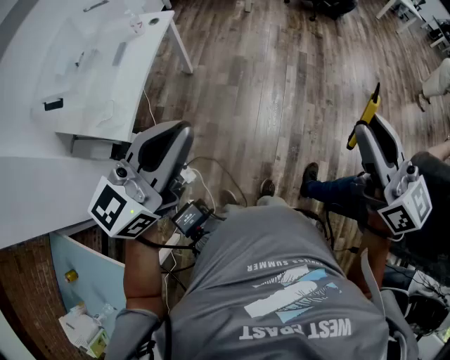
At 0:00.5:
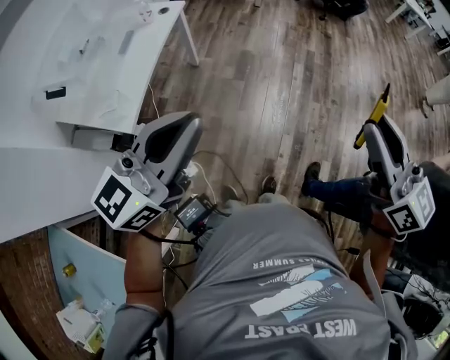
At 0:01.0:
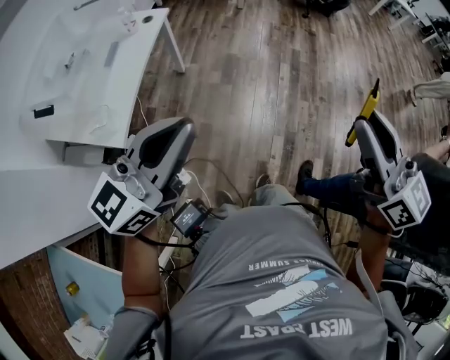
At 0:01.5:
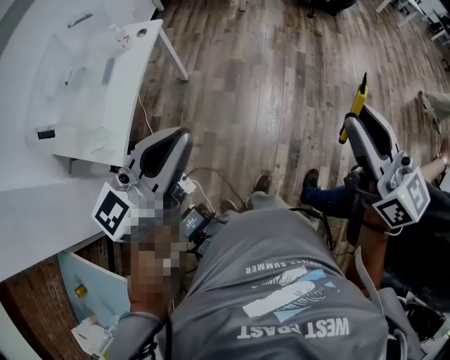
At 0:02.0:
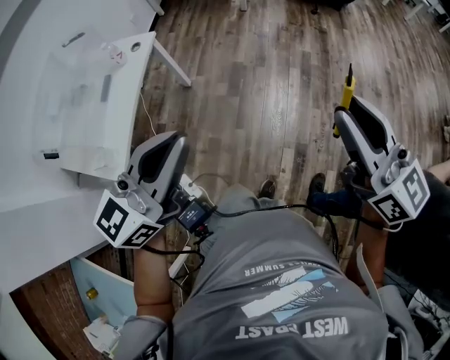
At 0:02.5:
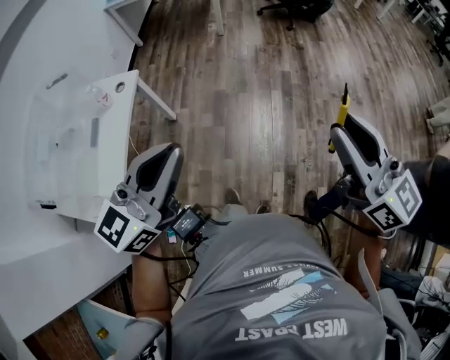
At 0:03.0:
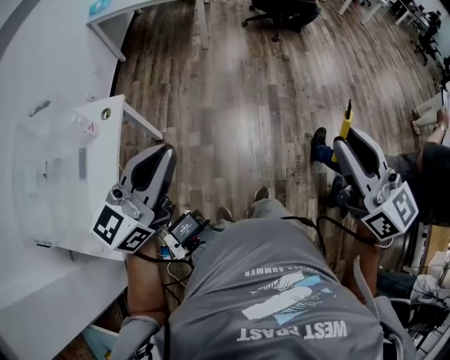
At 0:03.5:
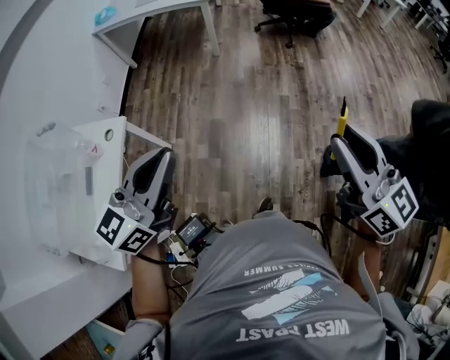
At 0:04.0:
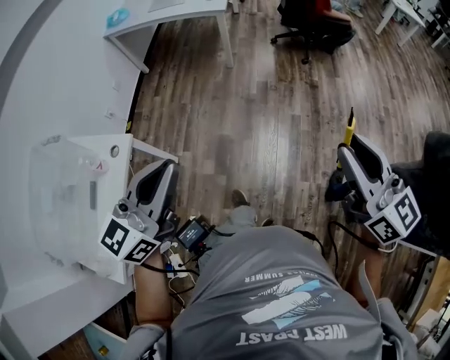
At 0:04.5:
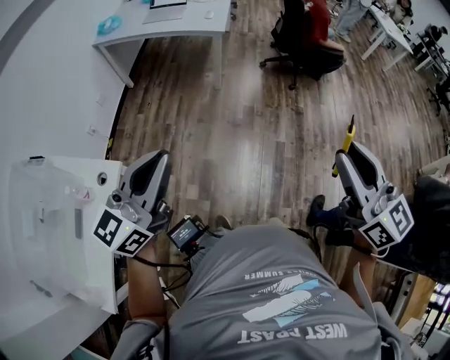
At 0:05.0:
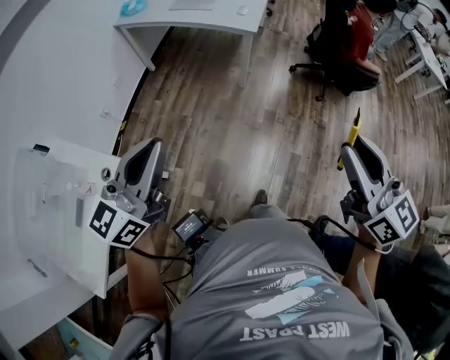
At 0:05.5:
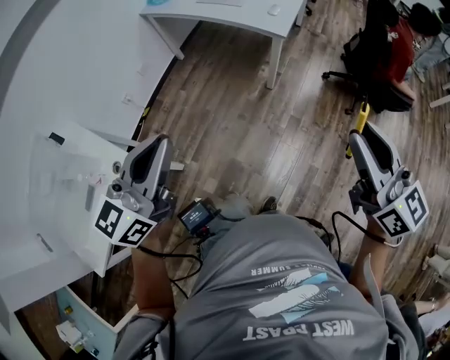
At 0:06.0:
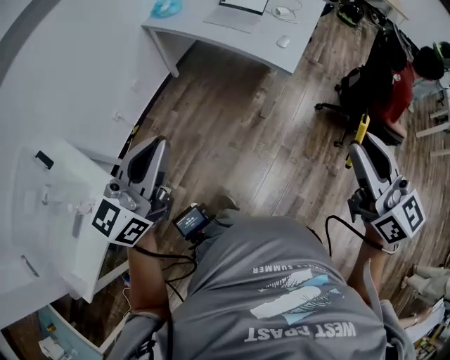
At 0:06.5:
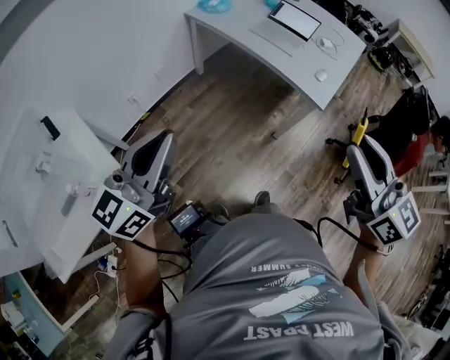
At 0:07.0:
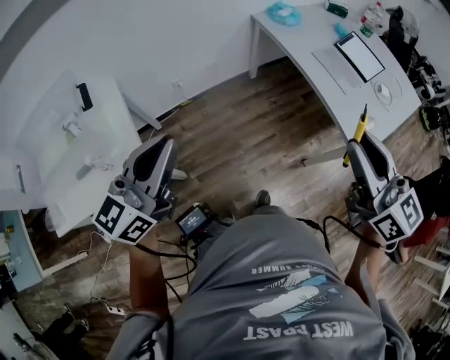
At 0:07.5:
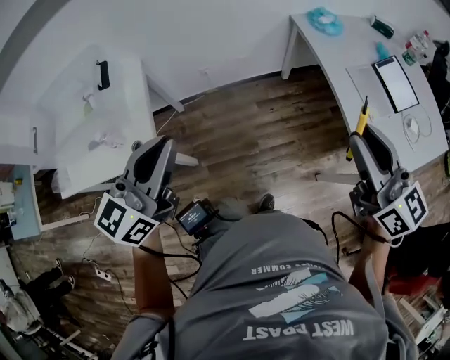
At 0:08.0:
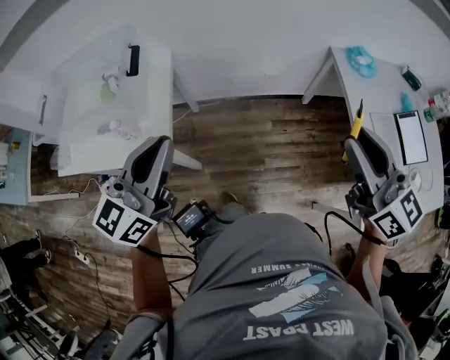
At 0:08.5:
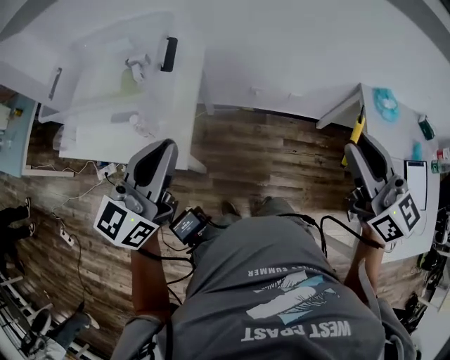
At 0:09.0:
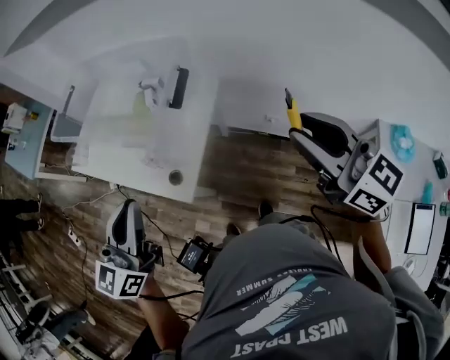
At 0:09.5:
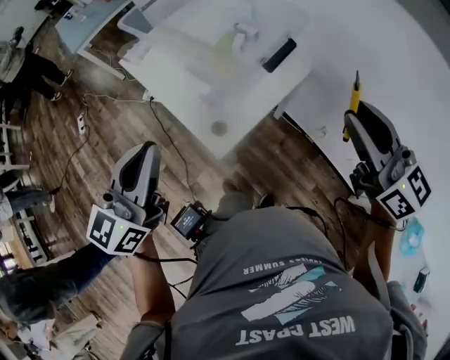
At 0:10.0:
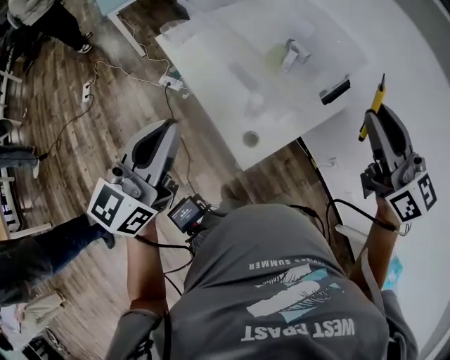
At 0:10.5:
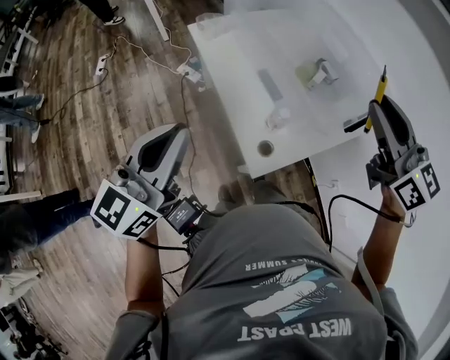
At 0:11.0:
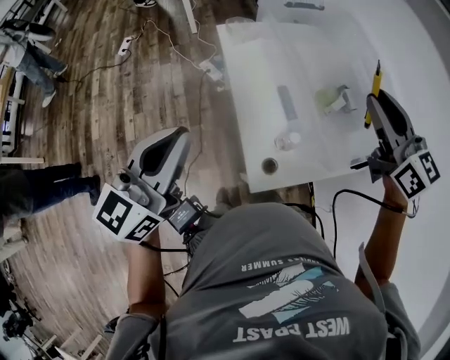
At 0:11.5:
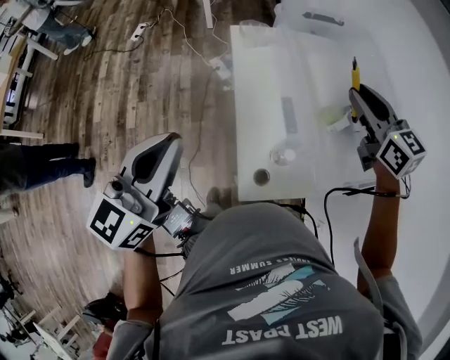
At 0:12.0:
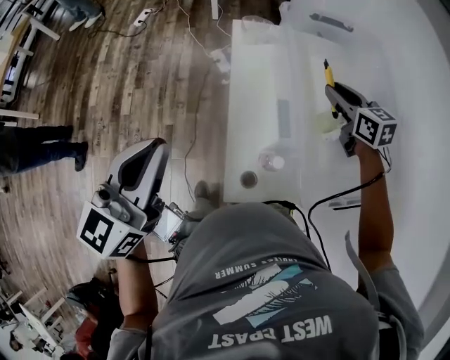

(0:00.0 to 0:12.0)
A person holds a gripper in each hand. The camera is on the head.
0:00.0 - 0:02.0: The grippers both shift forward by approximately 20 cm.
0:02.0 - 0:04.0: The grippers both shift forward by approximately 40 cm.
0:04.0 - 0:06.0: The two grippers travel together, forward, about 50 cm. The left gripper rotates approximately 20 degrees; the right gripper rotates some 20 degrees.
0:06.0 - 0:08.0: The right gripper moves about 50 cm, and changes its angle by some 60 degrees. Meanwhile the left gripper moves roughly 20 cm, and changes its angle by some 60 degrees.
0:08.0 - 0:10.0: The right gripper shifts by approximately 50 cm, and swivels roughly 60 degrees. The left gripper changes place by about 30 cm, and swivels about 60 degrees.
0:10.0 - 0:12.0: The right gripper changes place by roughly 40 cm, and tips its fingers downward by roughly 30 degrees, while the left gripper shifts by approximately 5 cm, and changes its angle by roughly 40 degrees.

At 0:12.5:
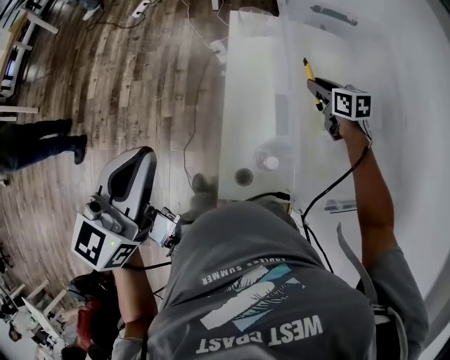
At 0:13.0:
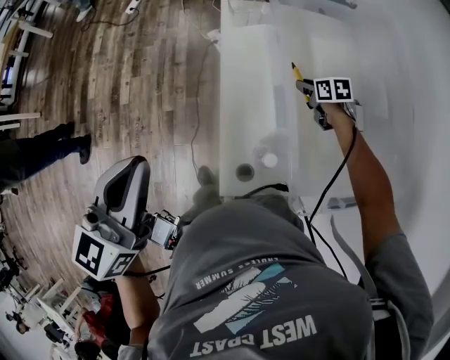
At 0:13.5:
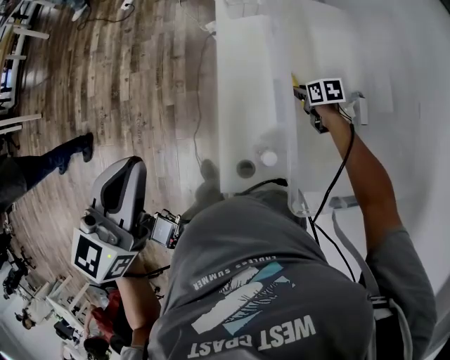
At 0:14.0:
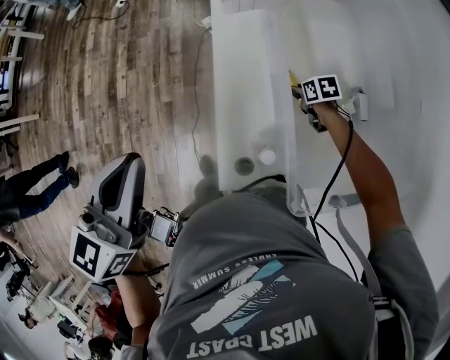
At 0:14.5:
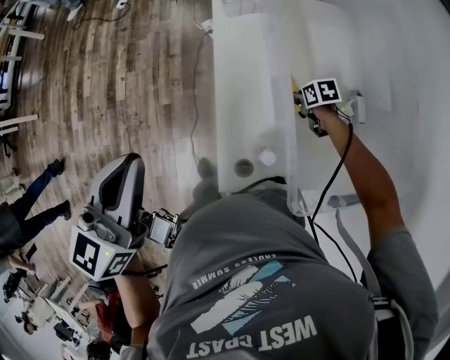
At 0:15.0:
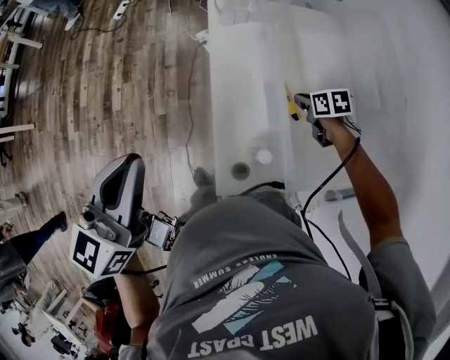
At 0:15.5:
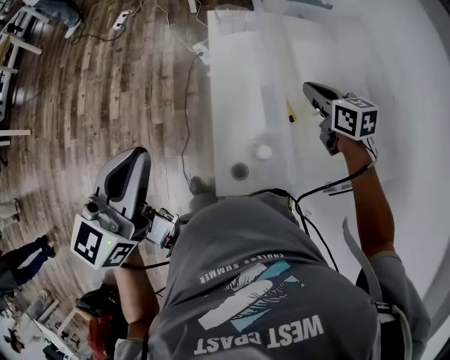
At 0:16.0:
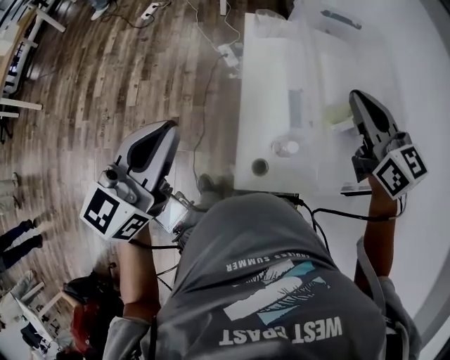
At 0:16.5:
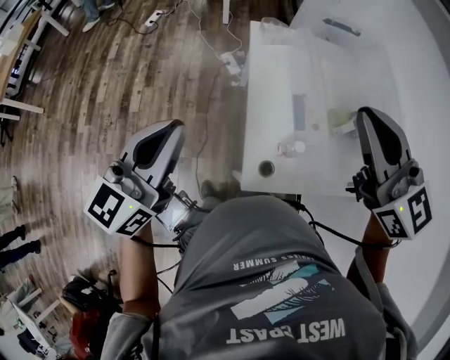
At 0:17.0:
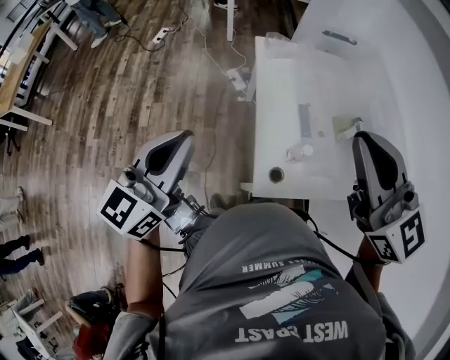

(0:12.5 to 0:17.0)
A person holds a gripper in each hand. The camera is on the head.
0:12.5 - 0:14.5: The left gripper changes place by about 5 cm, while the right gripper goes roughly 20 cm downward, and rotates about 30 degrees.
0:14.5 - 0:17.0: The right gripper shifts roughly 60 cm upward, to the left and backward, tips its fingers upward by approximately 60 degrees, and closes its fingers, while the left gripper goes about 15 cm to the left and backward.

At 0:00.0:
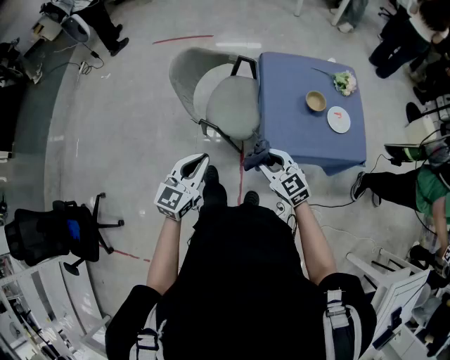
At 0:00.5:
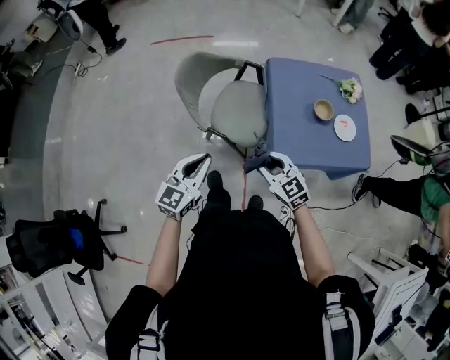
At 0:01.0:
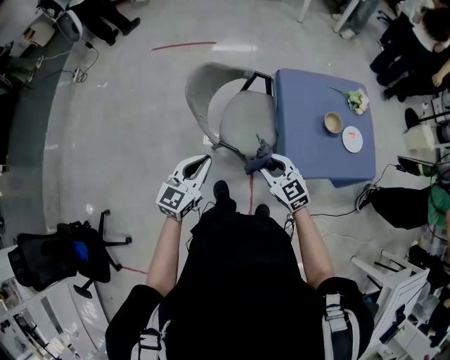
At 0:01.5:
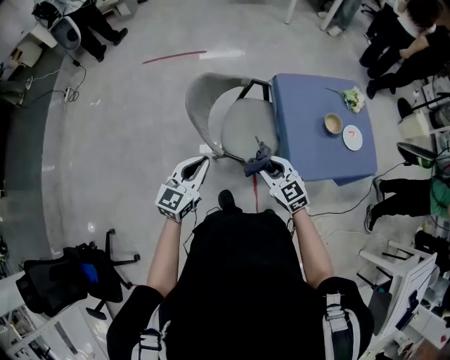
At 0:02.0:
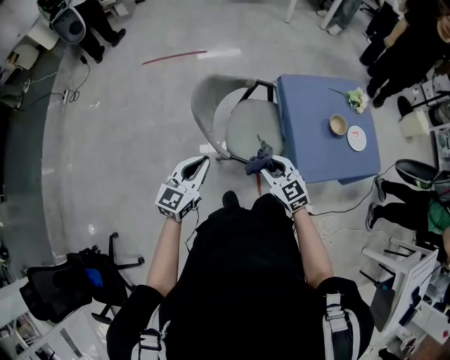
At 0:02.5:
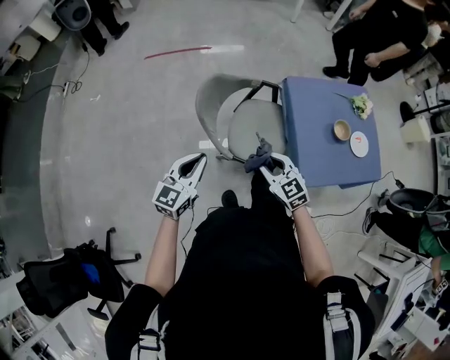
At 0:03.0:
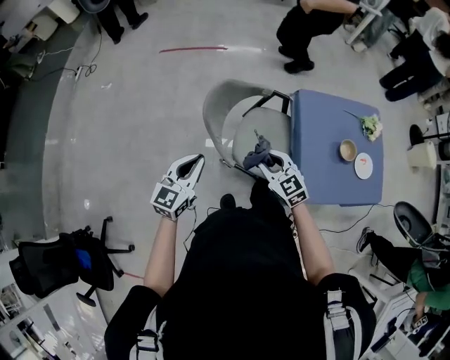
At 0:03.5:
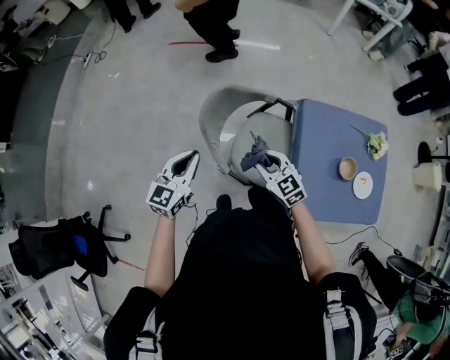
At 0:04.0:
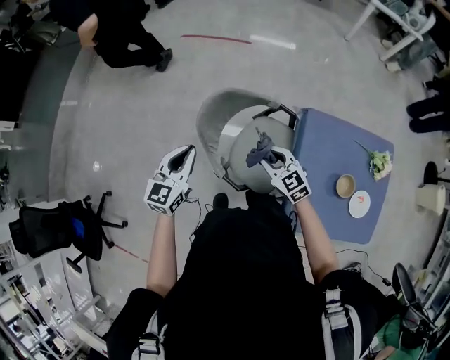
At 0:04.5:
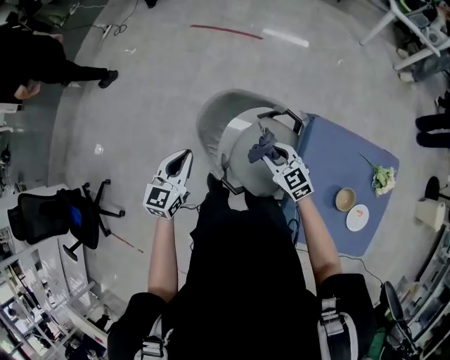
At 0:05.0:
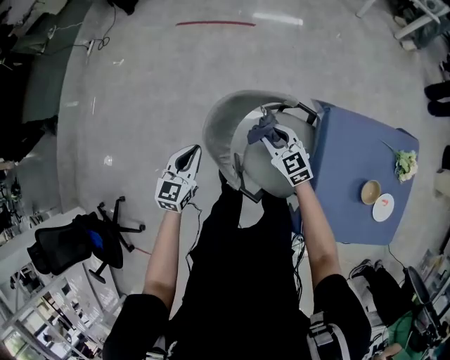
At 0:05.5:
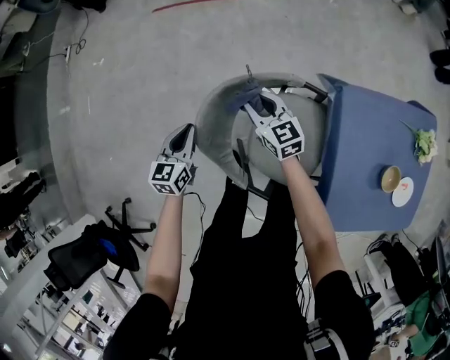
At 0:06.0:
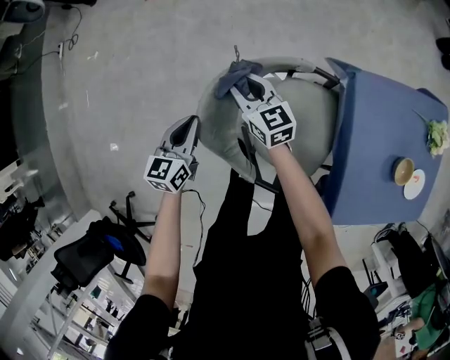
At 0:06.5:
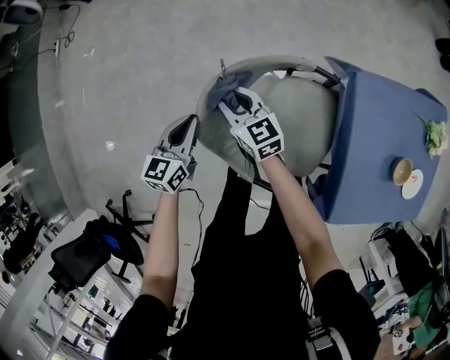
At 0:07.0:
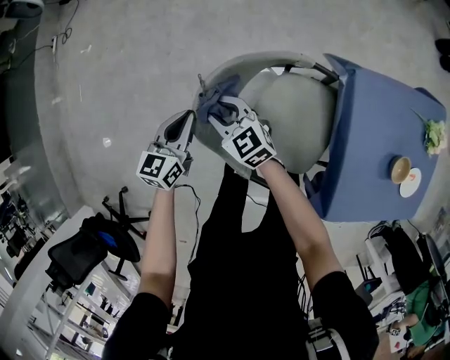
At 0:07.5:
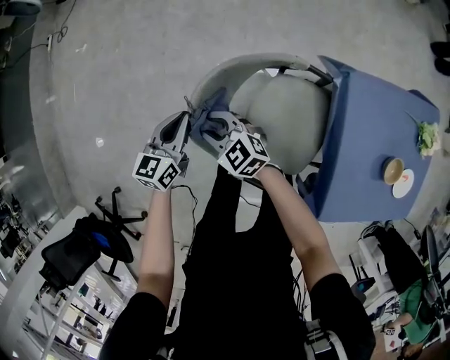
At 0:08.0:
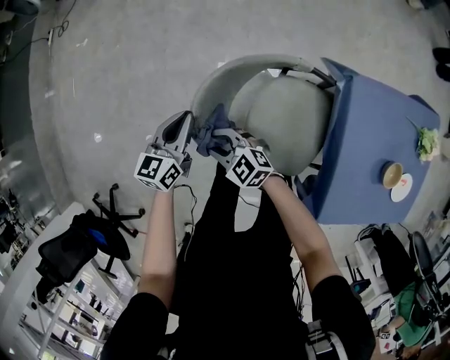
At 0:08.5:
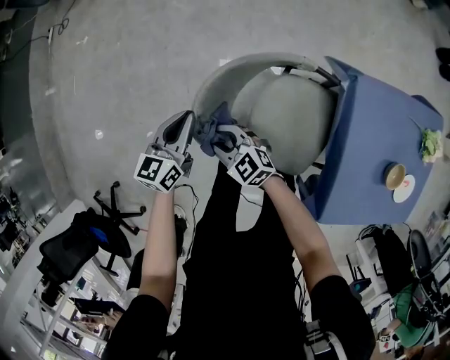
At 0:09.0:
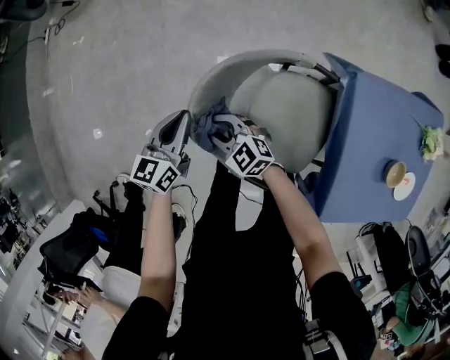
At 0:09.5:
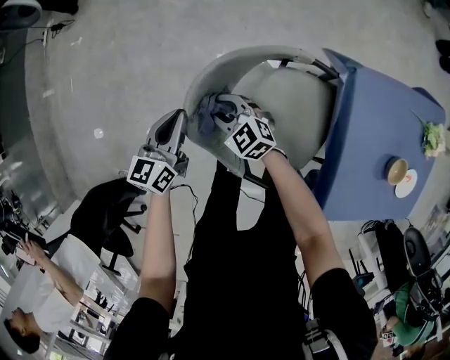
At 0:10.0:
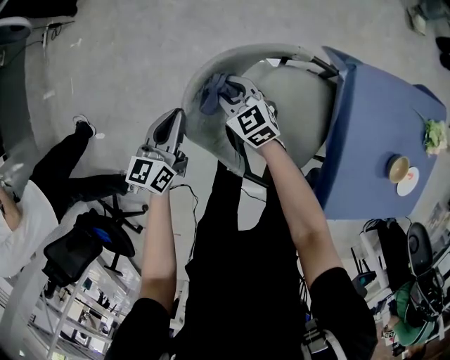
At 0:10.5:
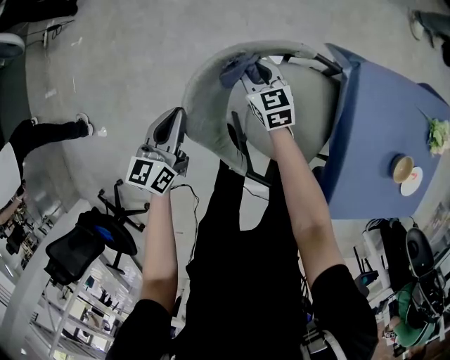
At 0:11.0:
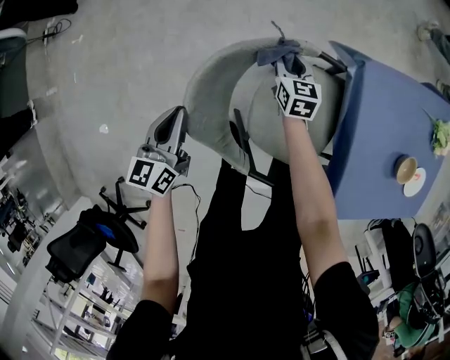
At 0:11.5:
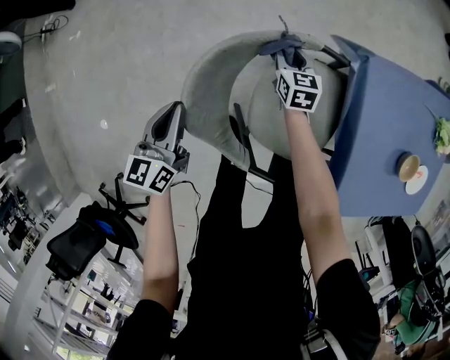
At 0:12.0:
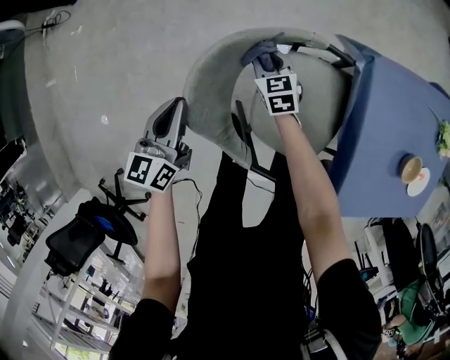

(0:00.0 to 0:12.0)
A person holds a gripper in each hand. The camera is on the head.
0:00.0 - 0:02.0: Both grippers move to the left and forward, about 30 cm.
0:02.0 - 0:04.0: The right gripper moves some 25 cm, and swivels roughly 20 degrees, while the left gripper changes place by roughly 20 cm, and turns by some 30 degrees.
0:04.0 - 0:06.0: The right gripper travels forward and downward by about 35 cm, and swivels approximately 30 degrees, while the left gripper is displaced downward and forward by some 35 cm.
0:06.0 - 0:08.0: The right gripper is displaced backward and to the left by roughly 20 cm, and changes its angle by about 40 degrees.
0:08.0 - 0:10.0: The right gripper shifts roughly 15 cm forward and to the right, and turns by some 20 degrees.
0:10.0 - 0:12.0: The right gripper heads downward and to the right, covering about 15 cm, and rotates some 30 degrees.
